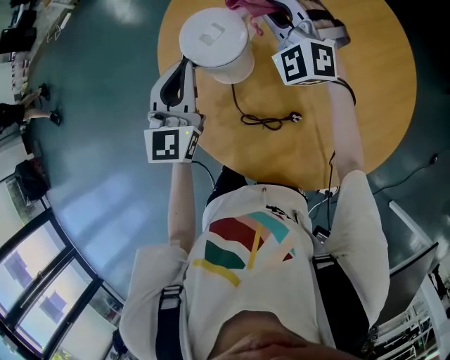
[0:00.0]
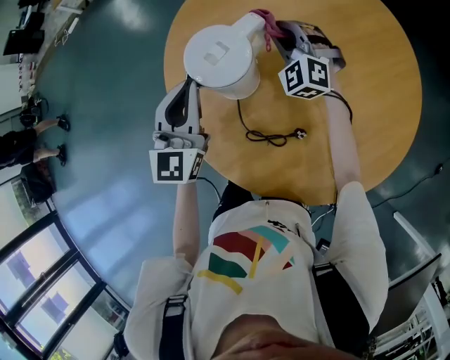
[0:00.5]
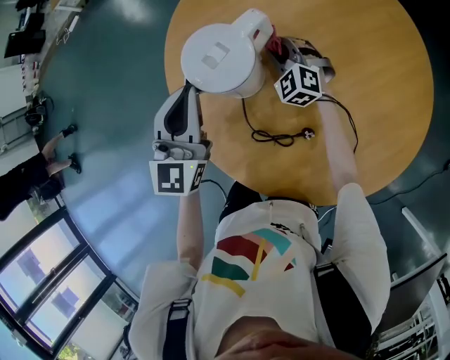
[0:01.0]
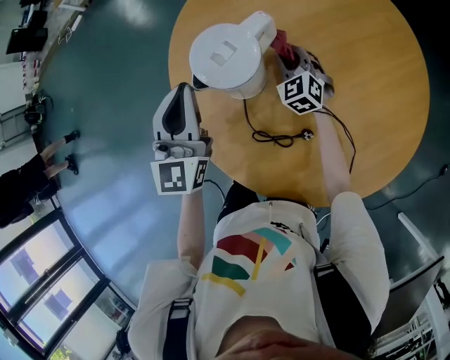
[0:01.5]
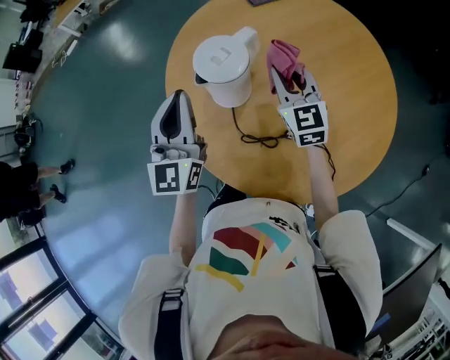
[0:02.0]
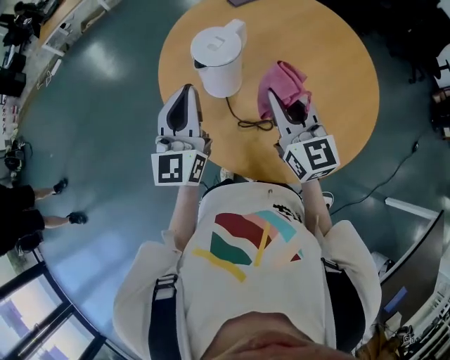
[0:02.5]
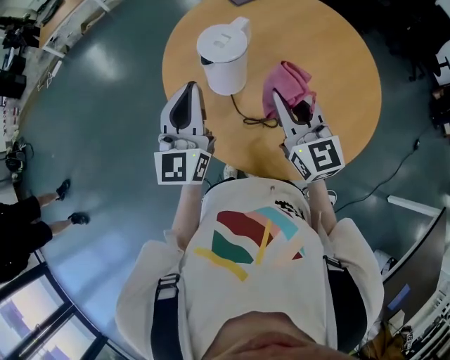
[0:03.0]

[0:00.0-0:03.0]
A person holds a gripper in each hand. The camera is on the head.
0:00.0 to 0:01.5: The right gripper travels downward by about 20 cm, and turns by roughly 30 degrees.
0:01.5 to 0:03.0: The left gripper shifts roughly 15 cm backward and upward. The right gripper is displaced upward and backward by about 40 cm, and rotates about 40 degrees.

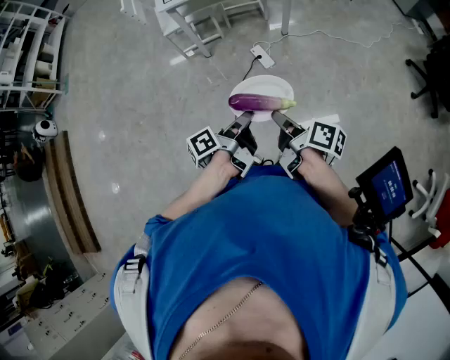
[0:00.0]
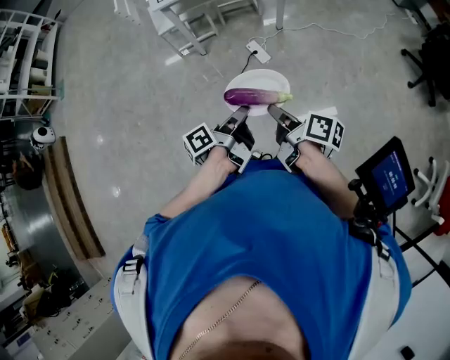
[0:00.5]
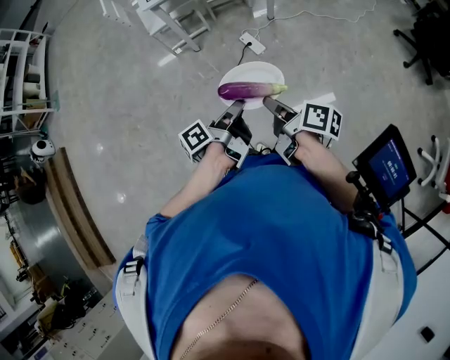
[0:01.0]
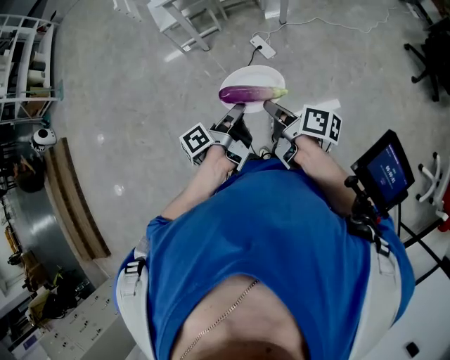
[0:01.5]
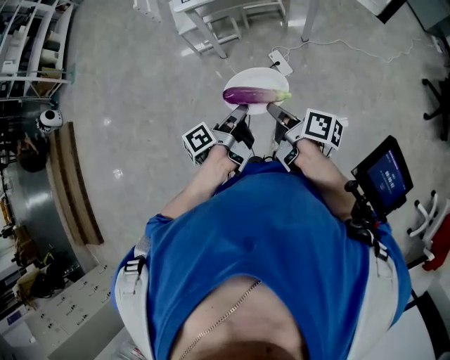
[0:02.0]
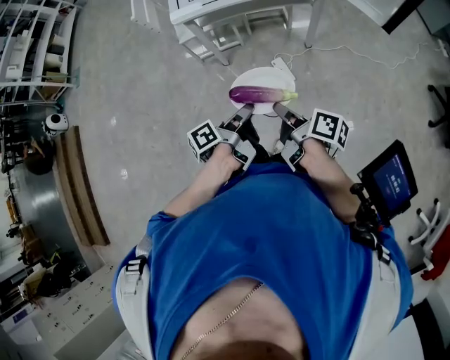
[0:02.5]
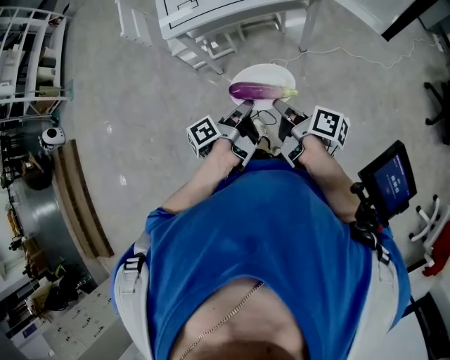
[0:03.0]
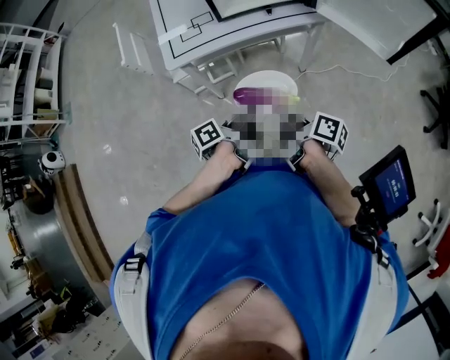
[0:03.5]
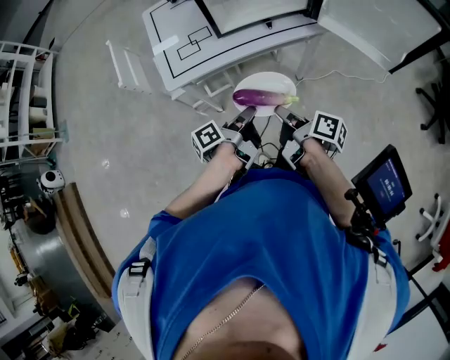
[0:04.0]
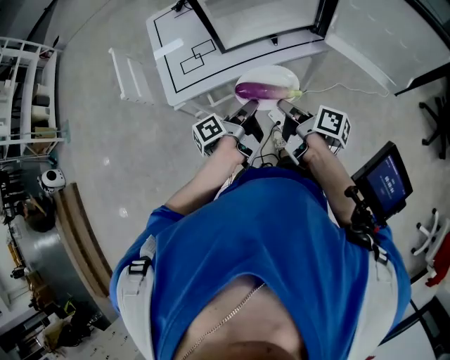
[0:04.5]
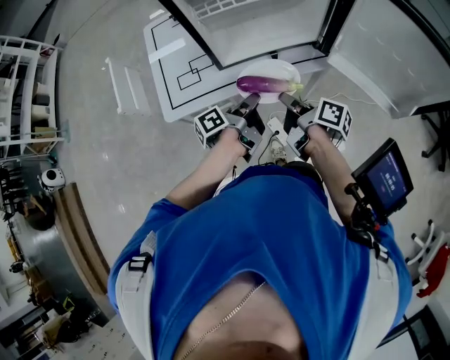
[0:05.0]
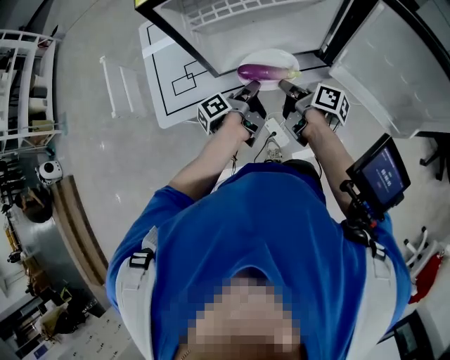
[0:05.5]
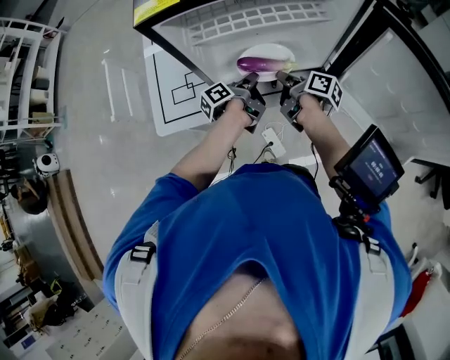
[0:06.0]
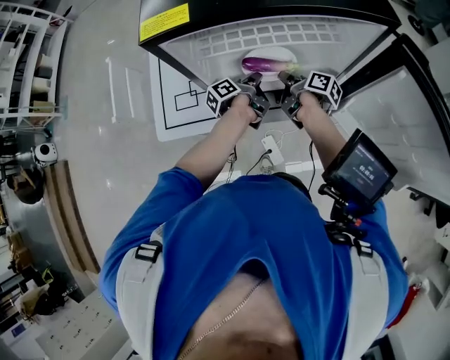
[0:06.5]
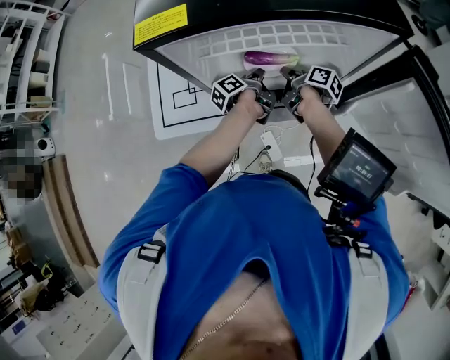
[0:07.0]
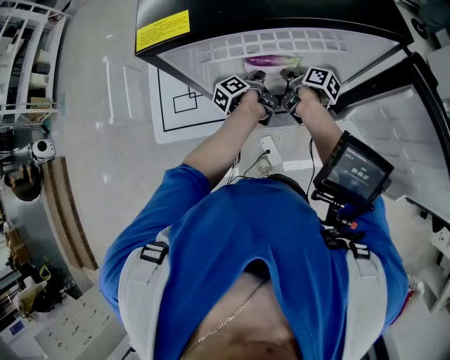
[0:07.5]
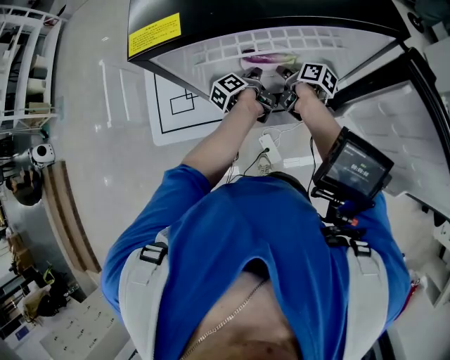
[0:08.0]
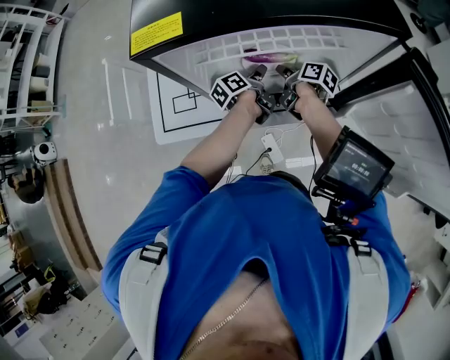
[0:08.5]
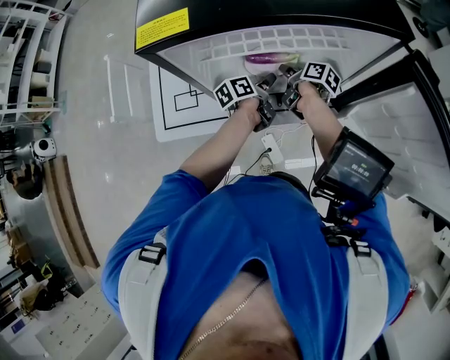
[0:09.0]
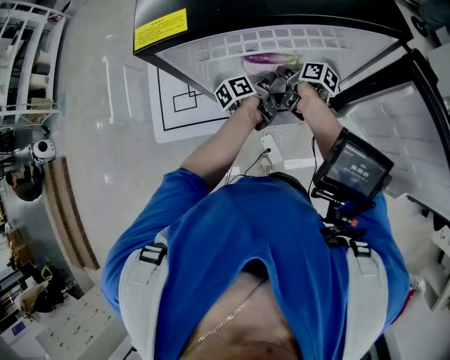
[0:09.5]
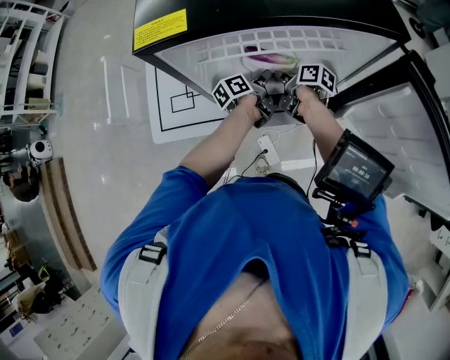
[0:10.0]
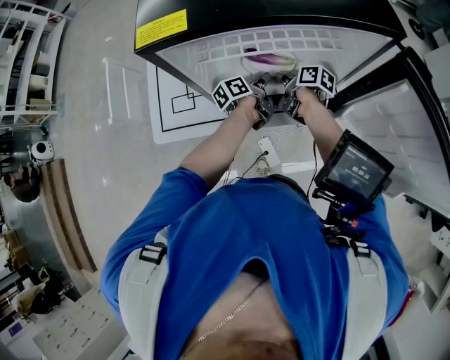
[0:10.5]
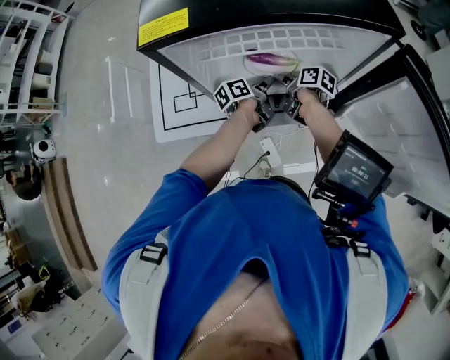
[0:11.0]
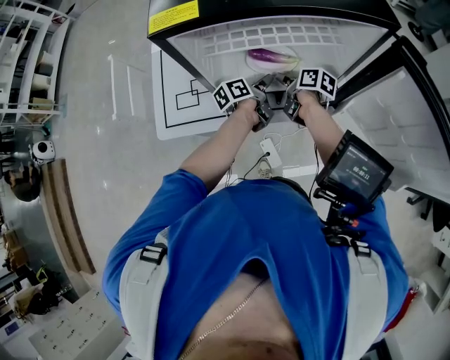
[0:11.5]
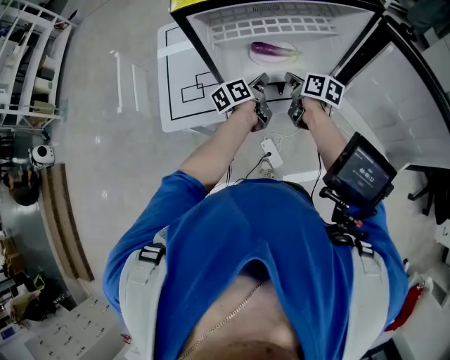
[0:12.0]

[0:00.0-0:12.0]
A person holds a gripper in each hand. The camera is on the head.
0:00.0 to 0:02.0: Both grippers move forward, some 15 cm.
0:02.0 to 0:04.0: Both grippers travel together forward, roughly 35 cm.
0:04.0 to 0:06.0: The grippers both shift forward by approximately 35 cm.
0:06.0 to 0:08.0: The grippers both shift forward by about 10 cm.
0:10.0 to 0:12.0: The two grippers go some 10 cm backward and upward. The right gripper swivels some 20 degrees, while the left gripper closes up.

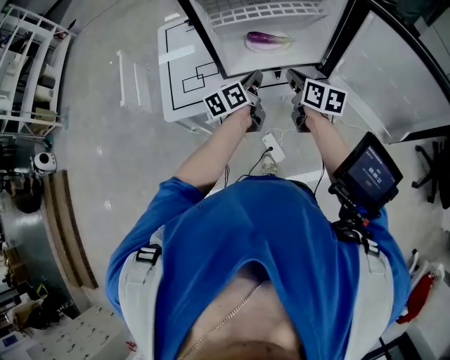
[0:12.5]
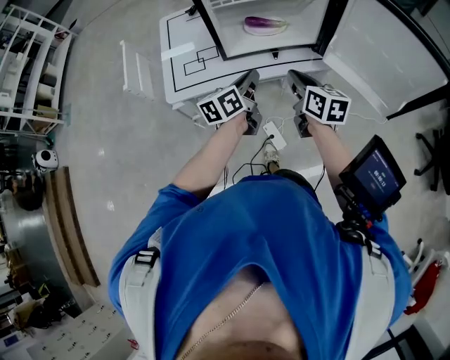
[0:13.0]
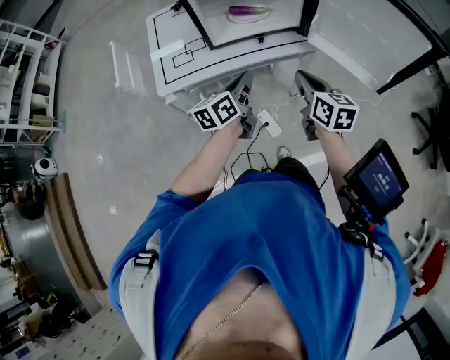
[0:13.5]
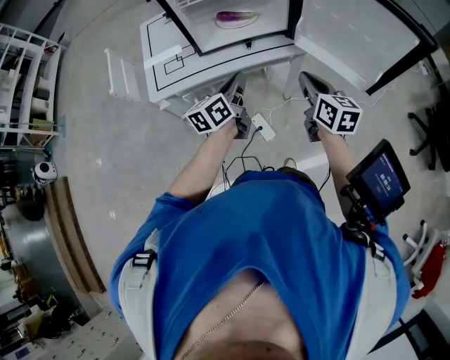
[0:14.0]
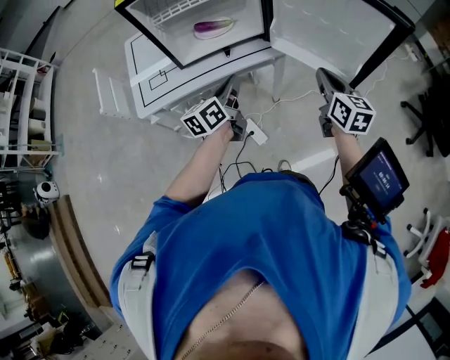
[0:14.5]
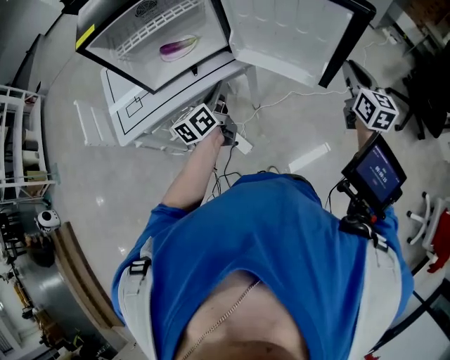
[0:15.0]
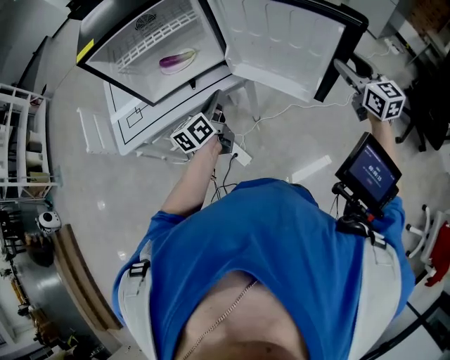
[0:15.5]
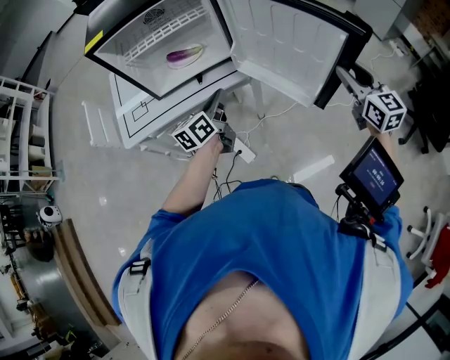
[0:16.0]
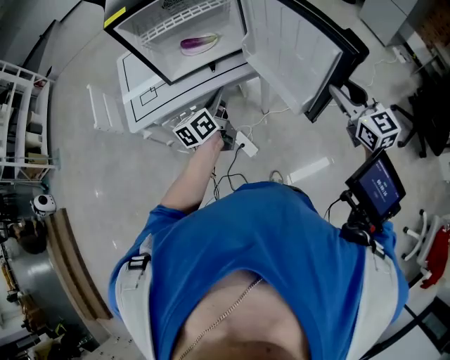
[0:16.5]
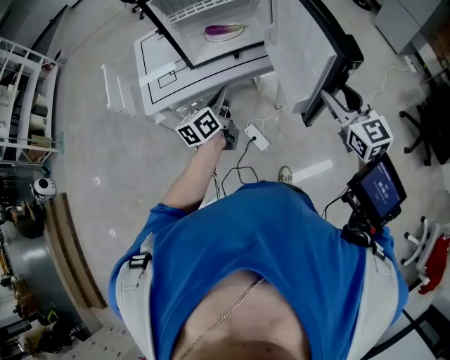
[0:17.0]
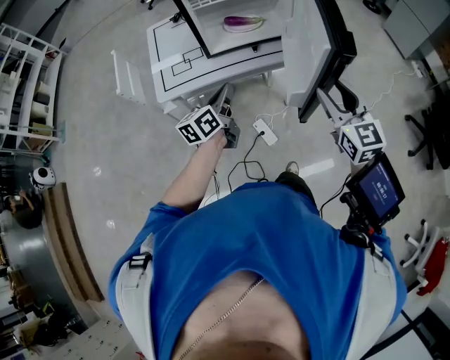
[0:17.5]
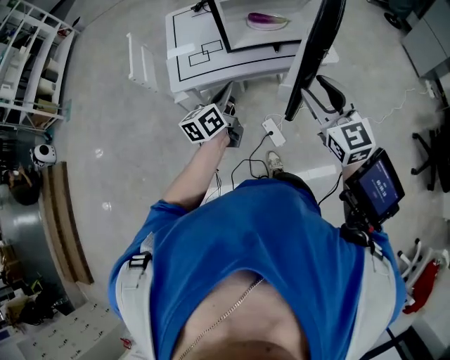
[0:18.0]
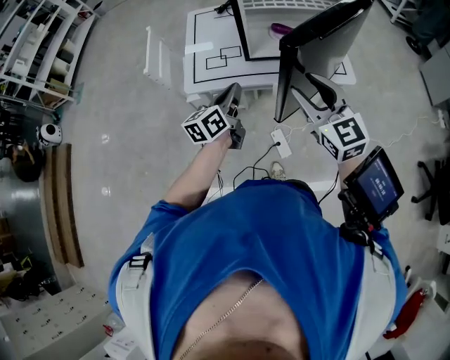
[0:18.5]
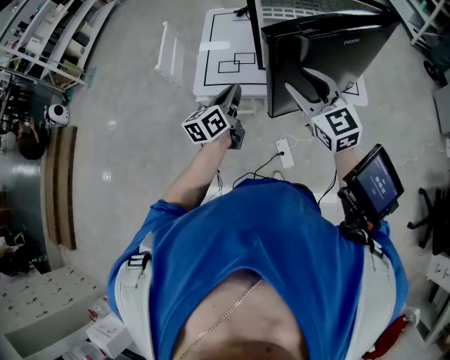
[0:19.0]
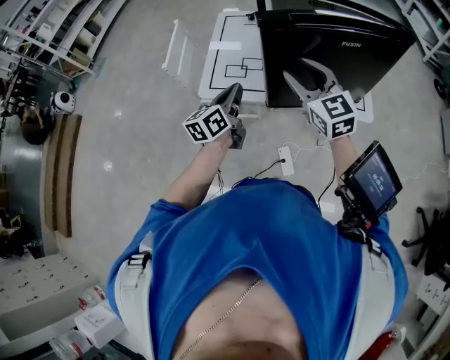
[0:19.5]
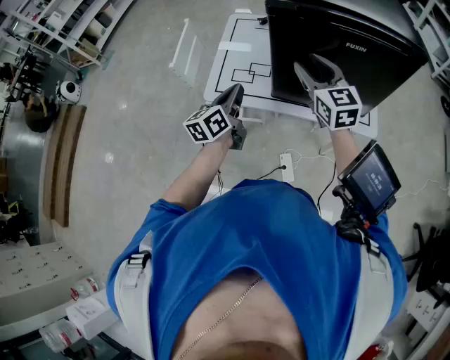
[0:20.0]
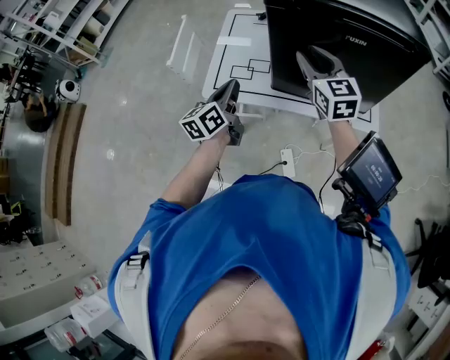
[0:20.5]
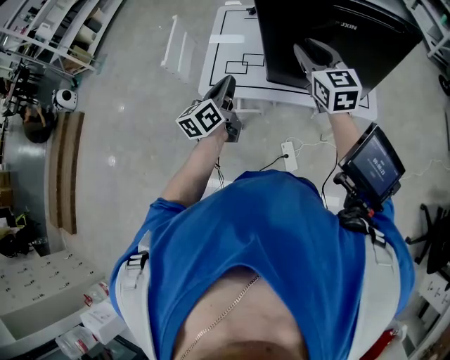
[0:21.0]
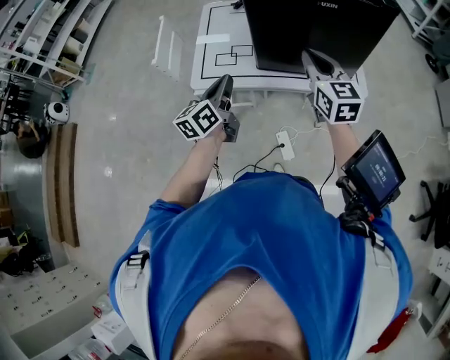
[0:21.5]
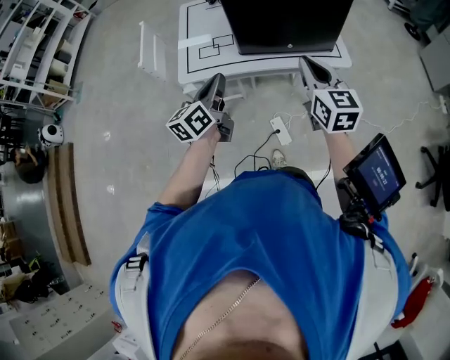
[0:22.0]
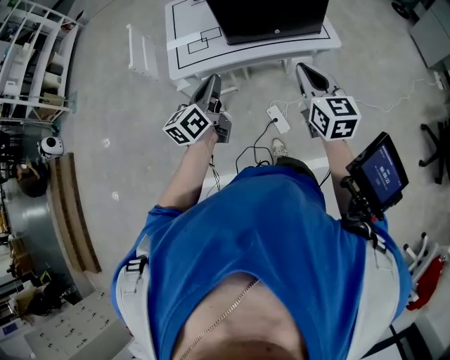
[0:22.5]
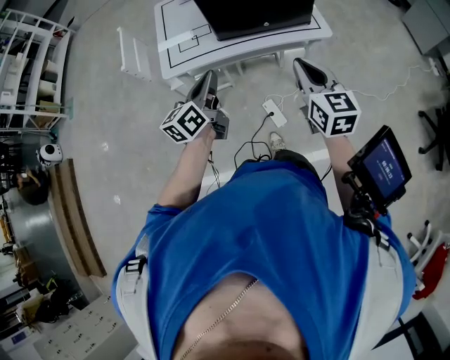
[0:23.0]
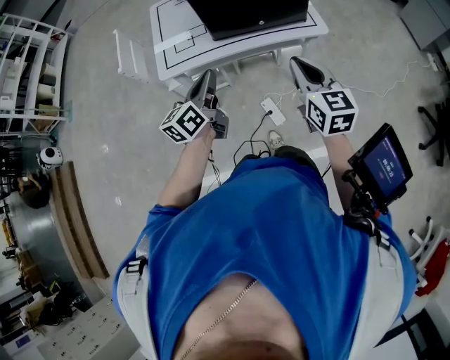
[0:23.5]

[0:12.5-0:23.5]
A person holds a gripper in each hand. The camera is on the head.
0:12.5 to 0:14.5: The right gripper goes some 30 cm to the right and backward, and turns by roughly 20 degrees, while the left gripper travels backward and to the right by approximately 20 cm.
0:14.5 to 0:16.0: The left gripper goes approximately 10 cm to the right; the right gripper is displaced to the right by approximately 20 cm, and opens.
0:16.0 to 0:18.0: The left gripper shifts roughly 25 cm to the left; the right gripper moves to the left, approximately 40 cm.
0:18.0 to 0:20.0: The right gripper goes roughly 30 cm forward, while the left gripper heads forward and to the left, covering roughly 15 cm, and swivels roughly 20 degrees.
0:20.0 to 0:21.5: Both grippers move backward, about 10 cm. The right gripper closes up.
0:21.5 to 0:23.5: The right gripper moves backward and to the right, about 20 cm. The left gripper shifts about 10 cm backward and to the right.

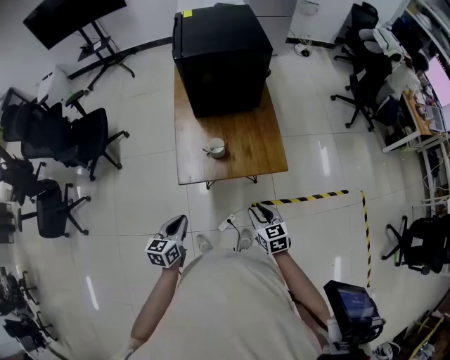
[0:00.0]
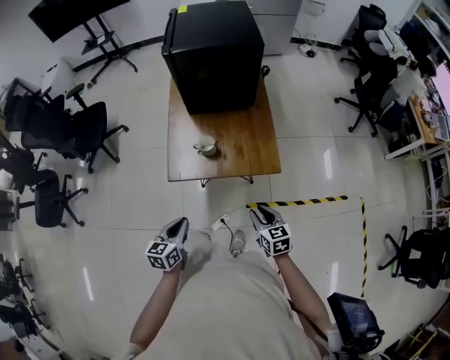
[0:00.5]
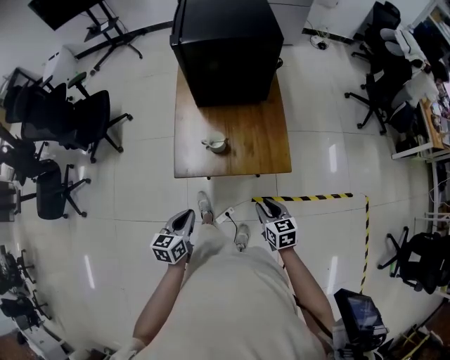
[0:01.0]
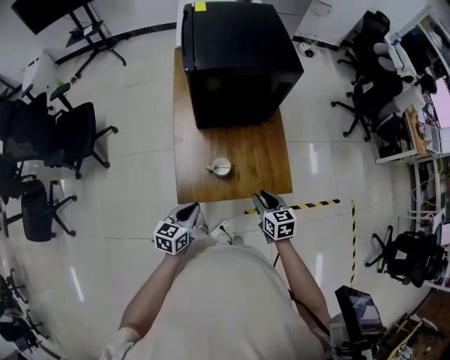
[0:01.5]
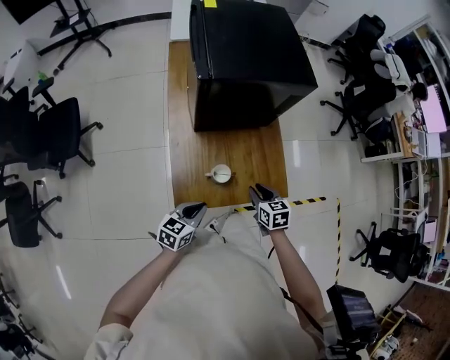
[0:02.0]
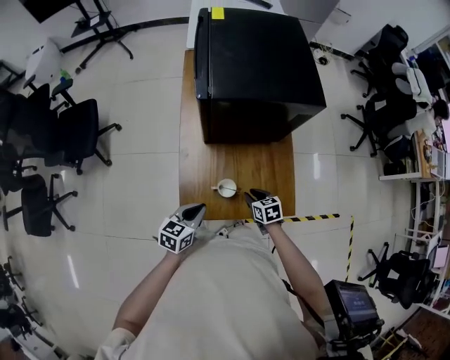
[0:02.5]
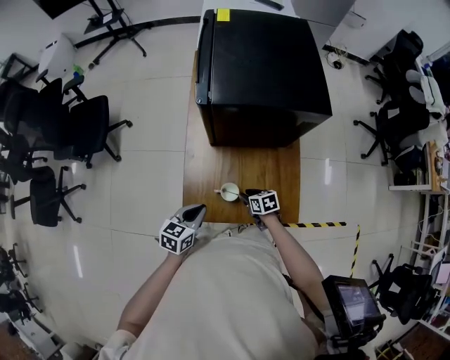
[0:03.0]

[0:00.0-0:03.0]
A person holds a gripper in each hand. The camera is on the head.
0:00.0 to 0:01.5: The two grippers go some 20 cm forward.
0:01.5 to 0:03.0: The left gripper moves approximately 10 cm; the right gripper is displaced downward by approximately 15 cm, and turns by roughly 30 degrees.
